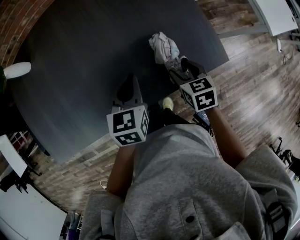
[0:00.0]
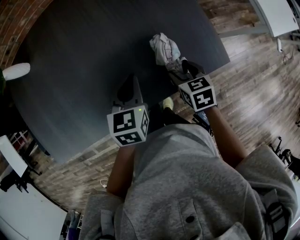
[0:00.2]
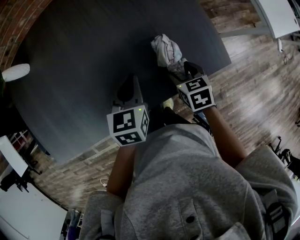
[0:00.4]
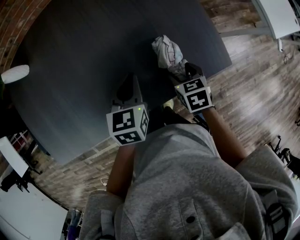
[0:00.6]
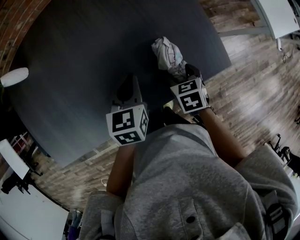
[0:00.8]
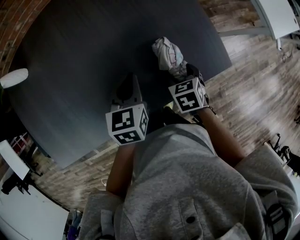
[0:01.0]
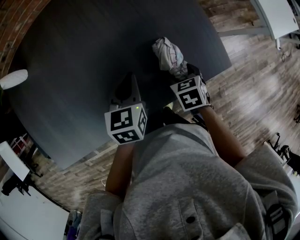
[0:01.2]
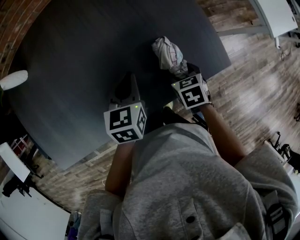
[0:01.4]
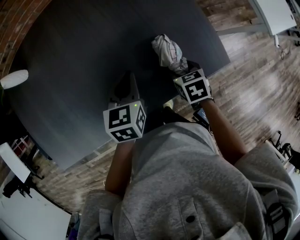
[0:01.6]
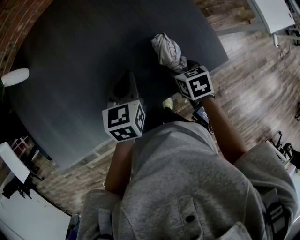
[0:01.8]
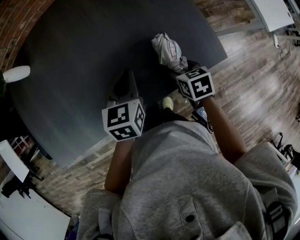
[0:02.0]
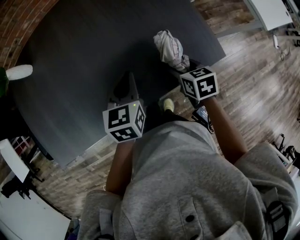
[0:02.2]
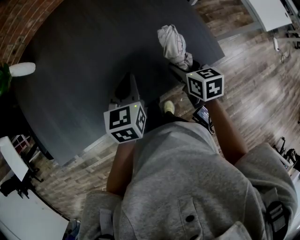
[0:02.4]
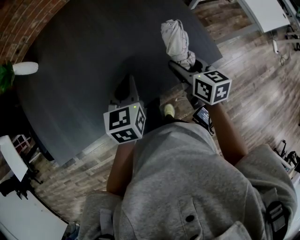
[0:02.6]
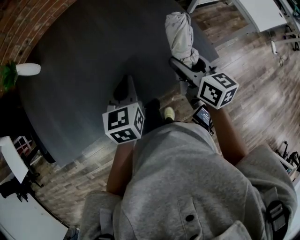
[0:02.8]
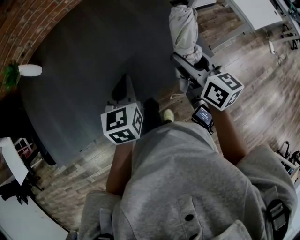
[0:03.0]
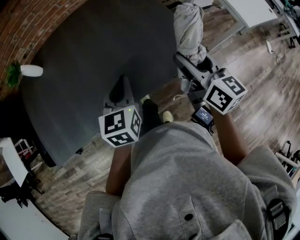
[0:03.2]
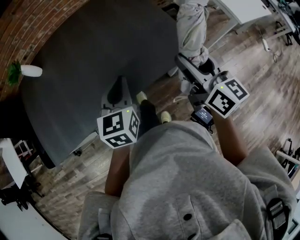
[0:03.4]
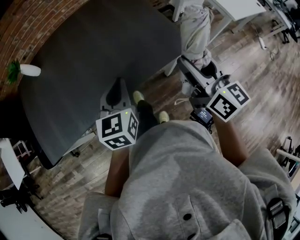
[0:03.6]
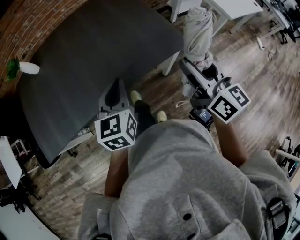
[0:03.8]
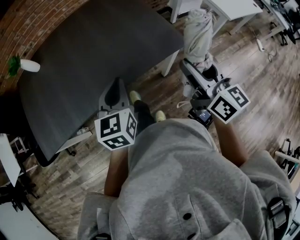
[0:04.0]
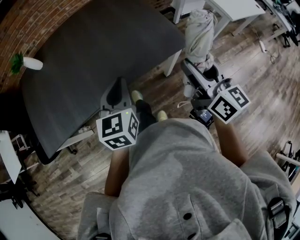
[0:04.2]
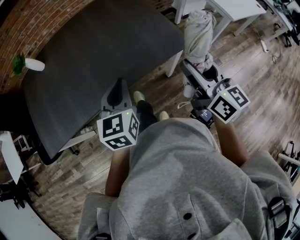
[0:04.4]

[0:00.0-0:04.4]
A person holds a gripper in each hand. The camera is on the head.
0:00.0 to 0:01.4: The grippers move only a little.
0:01.4 to 0:03.0: The left gripper shifts approximately 15 cm upward and backward, while the right gripper shifts approximately 25 cm upward, and points its fingers roughly 50 degrees further upward.
0:03.0 to 0:04.4: The two grippers go approximately 15 cm backward.

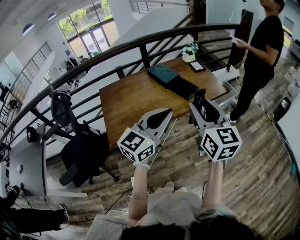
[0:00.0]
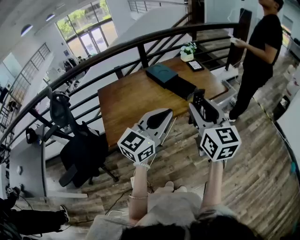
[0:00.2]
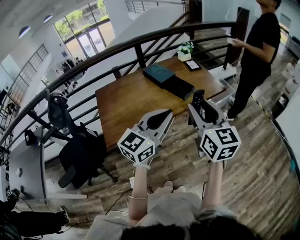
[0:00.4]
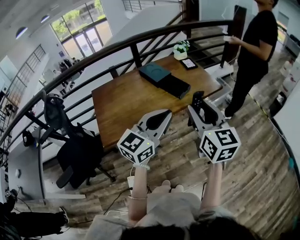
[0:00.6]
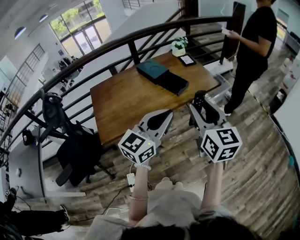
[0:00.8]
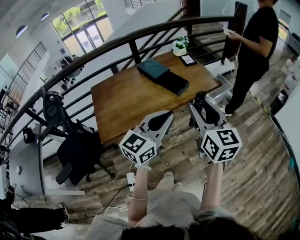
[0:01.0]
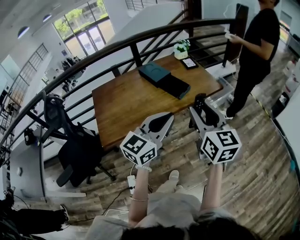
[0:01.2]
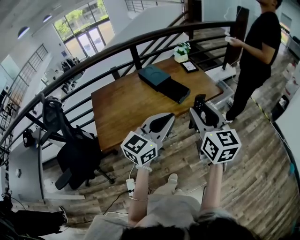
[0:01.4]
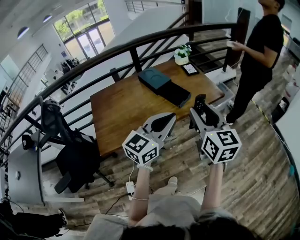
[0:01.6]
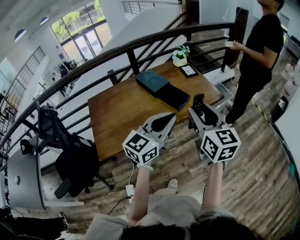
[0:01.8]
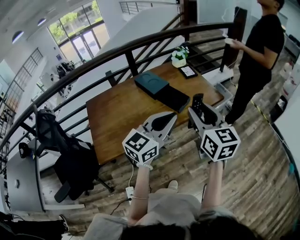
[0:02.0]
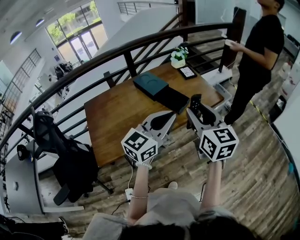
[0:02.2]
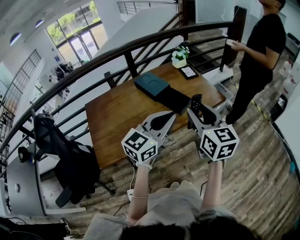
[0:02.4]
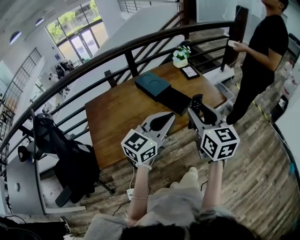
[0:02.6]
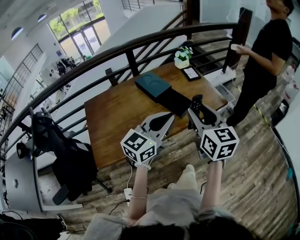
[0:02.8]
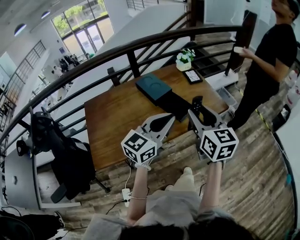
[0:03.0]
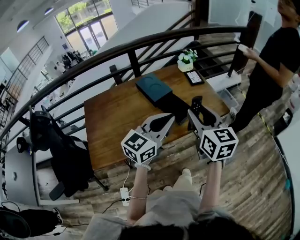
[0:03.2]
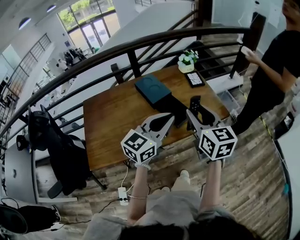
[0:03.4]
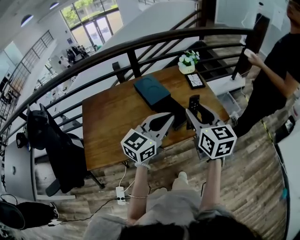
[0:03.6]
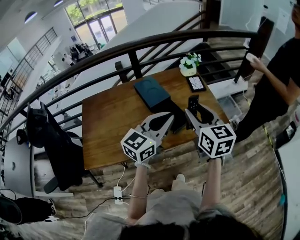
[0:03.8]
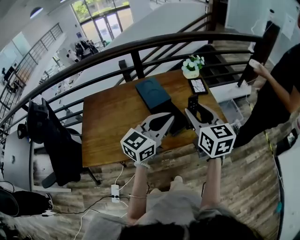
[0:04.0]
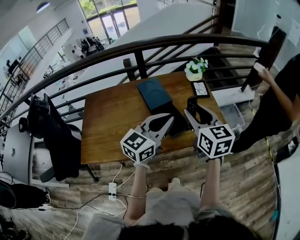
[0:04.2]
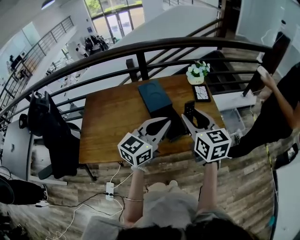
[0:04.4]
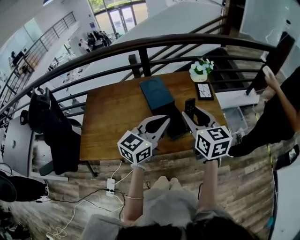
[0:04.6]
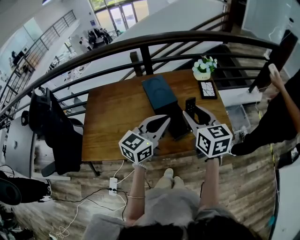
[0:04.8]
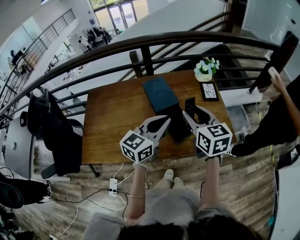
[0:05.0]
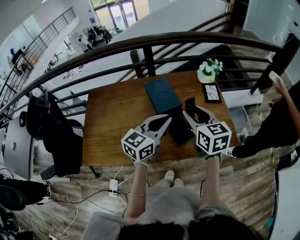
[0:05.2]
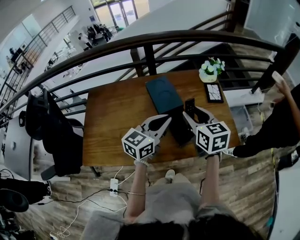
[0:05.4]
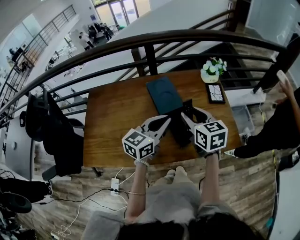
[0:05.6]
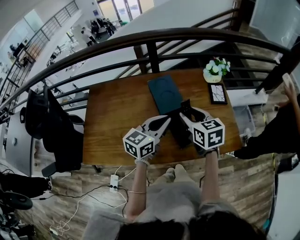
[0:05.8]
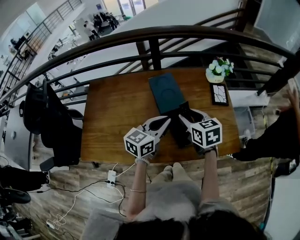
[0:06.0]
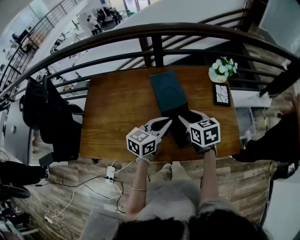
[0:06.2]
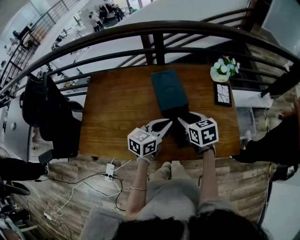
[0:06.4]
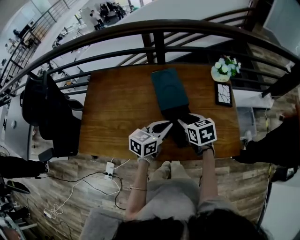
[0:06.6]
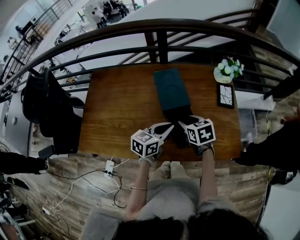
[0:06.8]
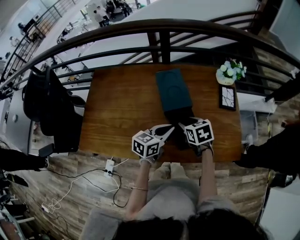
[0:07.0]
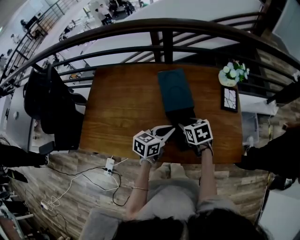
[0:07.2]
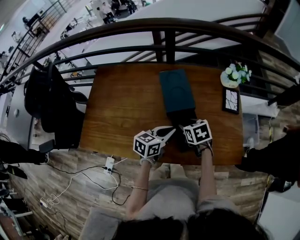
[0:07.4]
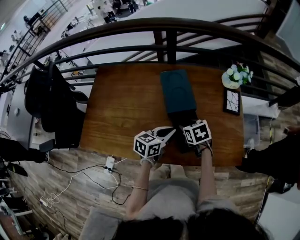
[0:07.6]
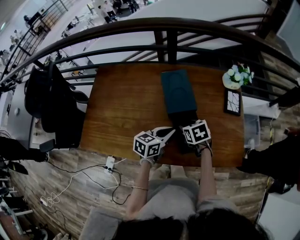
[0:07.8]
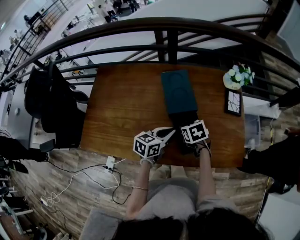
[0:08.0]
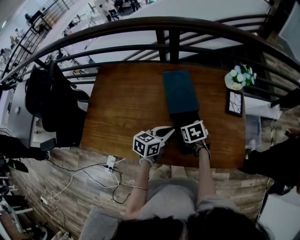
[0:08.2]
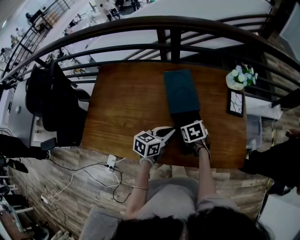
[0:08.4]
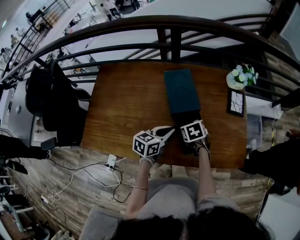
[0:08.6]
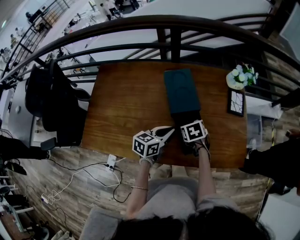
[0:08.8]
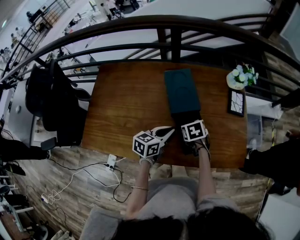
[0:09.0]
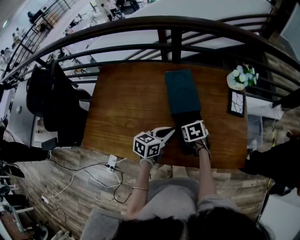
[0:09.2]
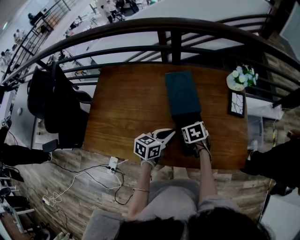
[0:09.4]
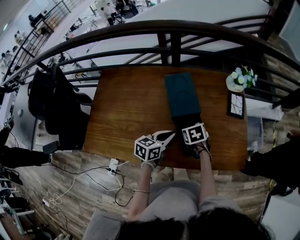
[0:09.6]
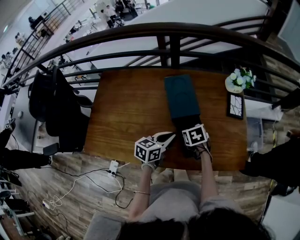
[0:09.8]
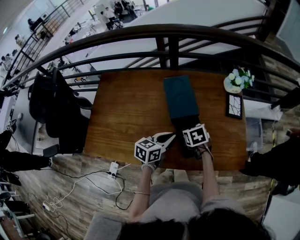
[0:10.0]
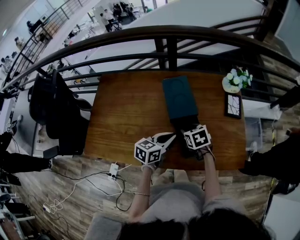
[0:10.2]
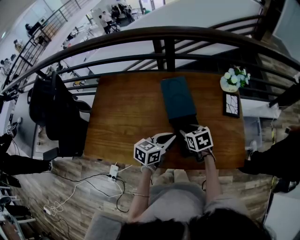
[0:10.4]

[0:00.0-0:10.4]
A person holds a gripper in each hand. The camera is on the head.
0:00.0 to 0:01.4: The two grippers go some 5 cm to the right.
0:01.4 to 0:03.0: Both grippers move forward, some 15 cm.
0:03.0 to 0:04.4: Both grippers travel together forward, about 15 cm.
0:04.4 to 0:06.0: The left gripper goes roughly 15 cm forward, downward and to the left. The right gripper shifts roughly 20 cm downward, forward and to the left, and rotates approximately 20 degrees.
0:06.0 to 0:07.4: Both grippers move downward, some 10 cm. The right gripper swivels about 20 degrees.
0:07.4 to 0:10.4: The grippers make only small movements.

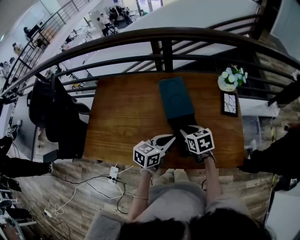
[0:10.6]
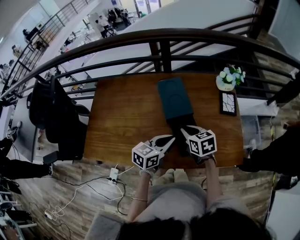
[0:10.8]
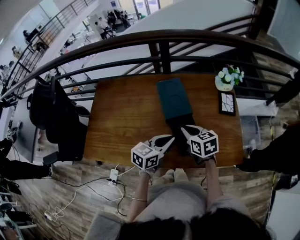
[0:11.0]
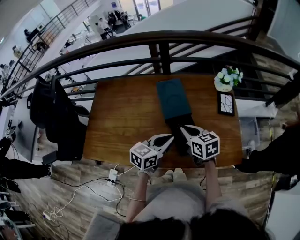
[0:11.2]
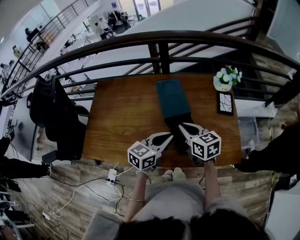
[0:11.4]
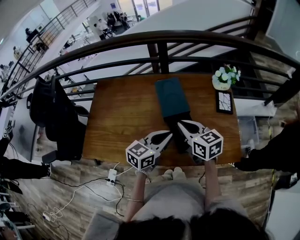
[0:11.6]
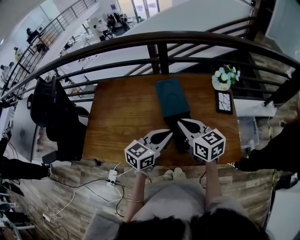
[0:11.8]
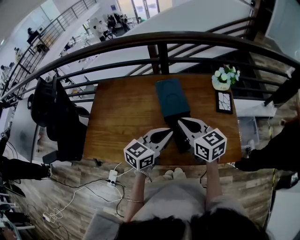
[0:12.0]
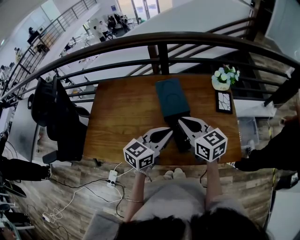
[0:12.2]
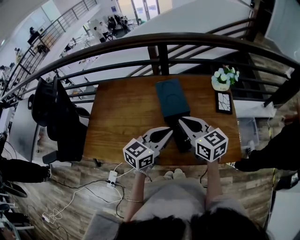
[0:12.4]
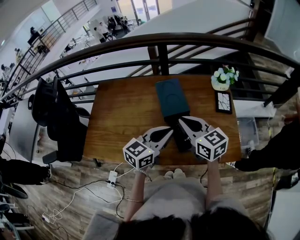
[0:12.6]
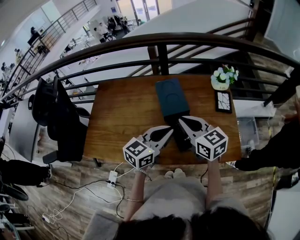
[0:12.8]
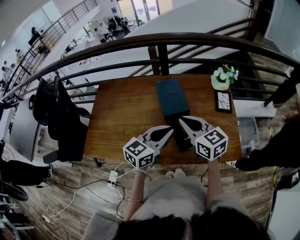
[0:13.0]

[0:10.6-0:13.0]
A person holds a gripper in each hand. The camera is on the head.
0:10.6 to 0:11.8: The right gripper is displaced upward by some 15 cm, changes its angle by some 30 degrees, and closes up; the left gripper goes about 10 cm upward.
0:11.8 to 0:13.0: There are only small adjustments of the grippers.

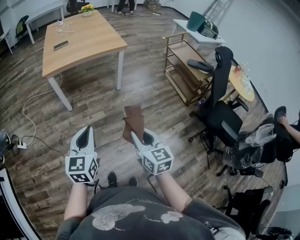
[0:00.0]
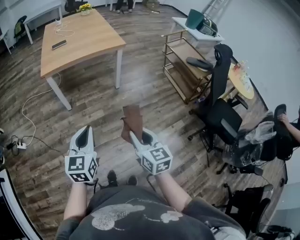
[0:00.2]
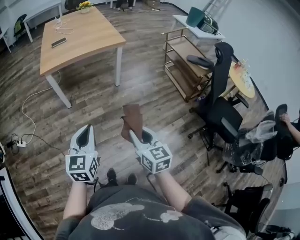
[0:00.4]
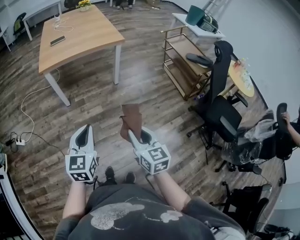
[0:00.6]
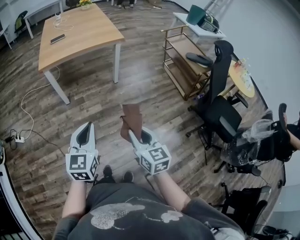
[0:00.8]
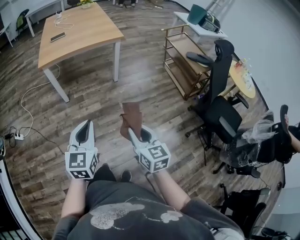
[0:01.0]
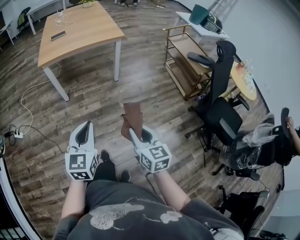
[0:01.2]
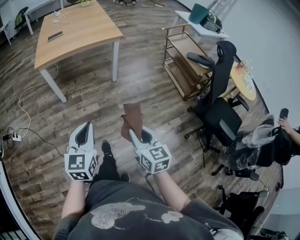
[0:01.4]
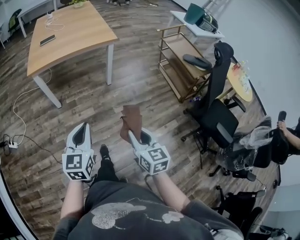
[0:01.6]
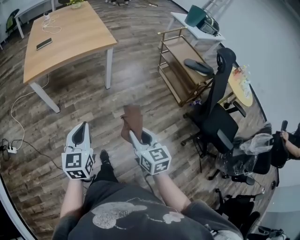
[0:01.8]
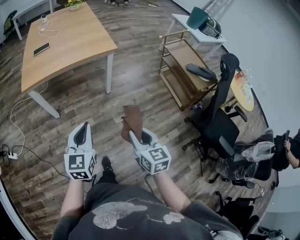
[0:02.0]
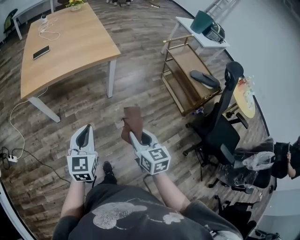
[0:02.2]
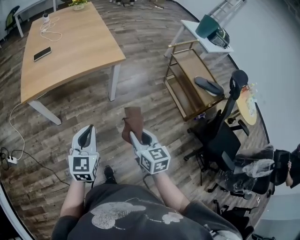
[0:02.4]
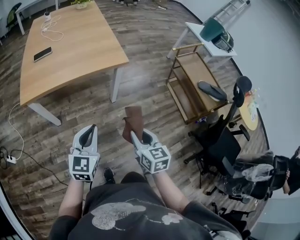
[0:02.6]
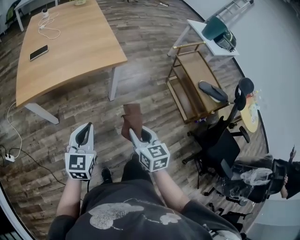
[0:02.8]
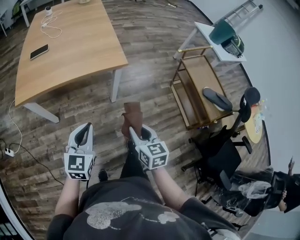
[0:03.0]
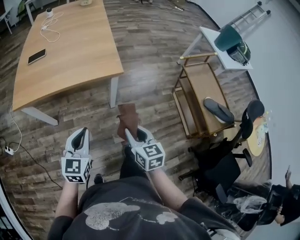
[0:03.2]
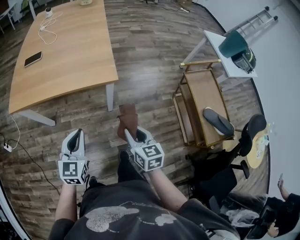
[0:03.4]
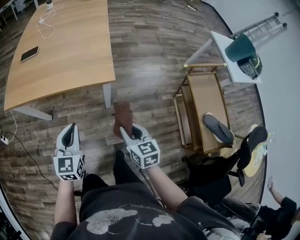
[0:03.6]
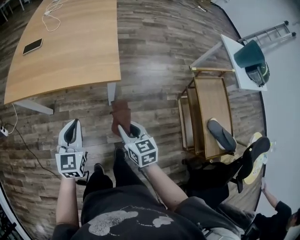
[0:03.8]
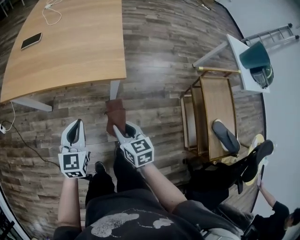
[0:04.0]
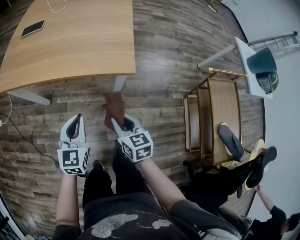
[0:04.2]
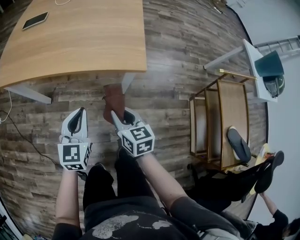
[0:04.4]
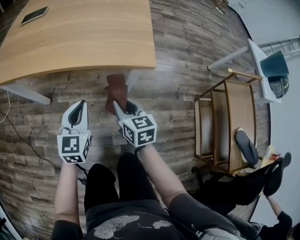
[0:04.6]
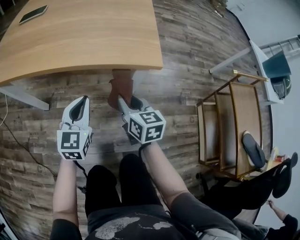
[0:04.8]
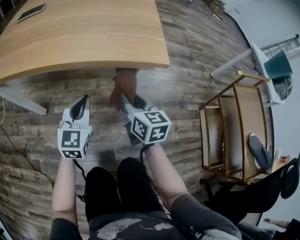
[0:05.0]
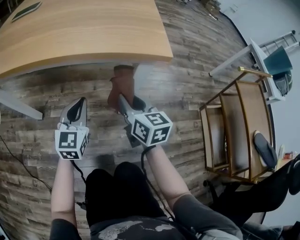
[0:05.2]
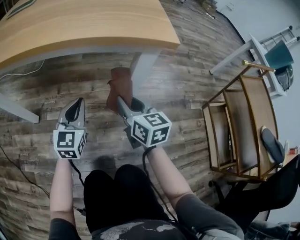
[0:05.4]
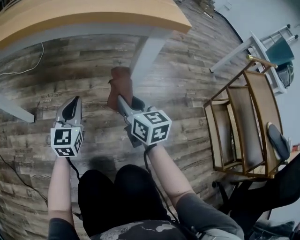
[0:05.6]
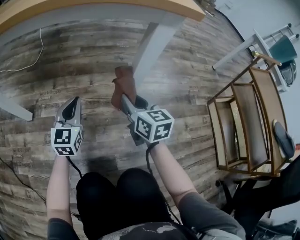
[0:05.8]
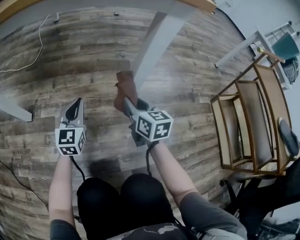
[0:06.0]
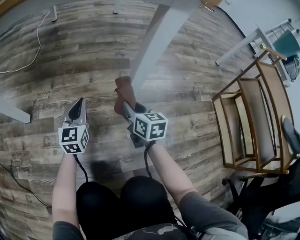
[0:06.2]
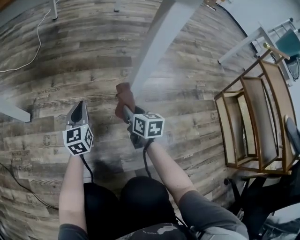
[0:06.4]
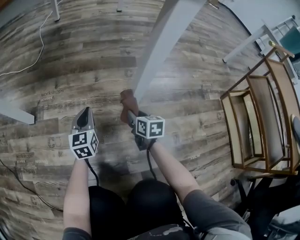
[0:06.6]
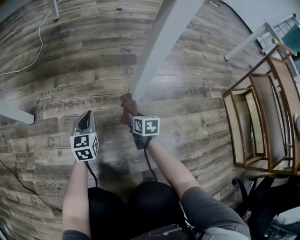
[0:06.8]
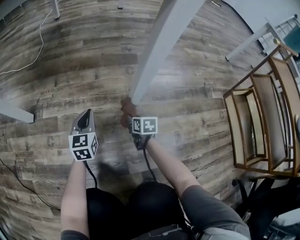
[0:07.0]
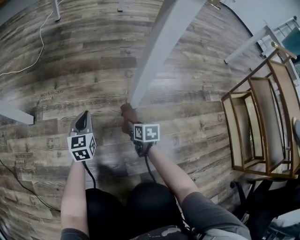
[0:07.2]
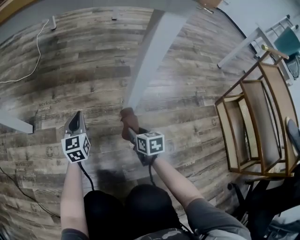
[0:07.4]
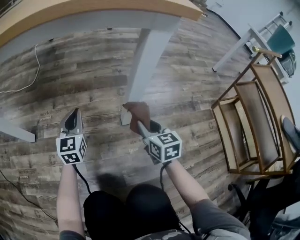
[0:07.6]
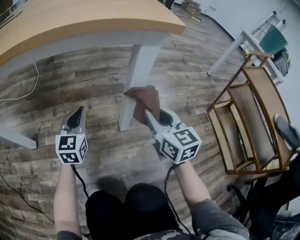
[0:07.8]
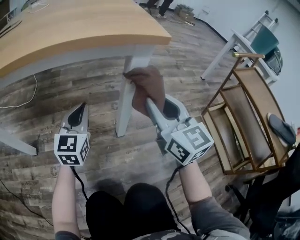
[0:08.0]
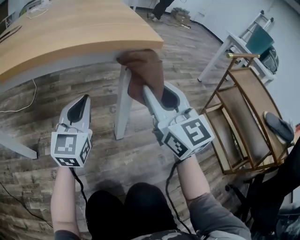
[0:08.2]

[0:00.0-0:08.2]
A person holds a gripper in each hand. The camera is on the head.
0:00.0 to 0:01.6: The grippers both shift to the right and forward by some 10 cm.
0:01.6 to 0:03.2: The two grippers go some 40 cm forward.
0:03.2 to 0:05.0: The right gripper moves forward and downward, approximately 35 cm. Meanwhile the left gripper goes about 35 cm downward and forward.
0:05.0 to 0:06.6: The two grippers go about 40 cm downward.
0:06.6 to 0:08.2: Both grippers move upward, about 40 cm. The left gripper rotates about 30 degrees; the right gripper points its fingers roughly 40 degrees further upward.
